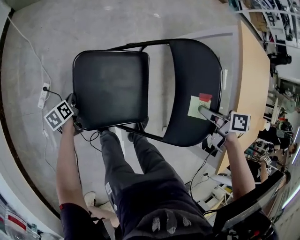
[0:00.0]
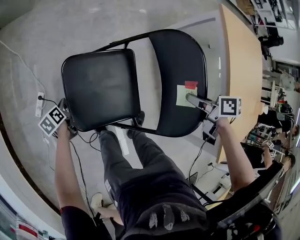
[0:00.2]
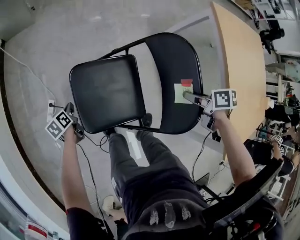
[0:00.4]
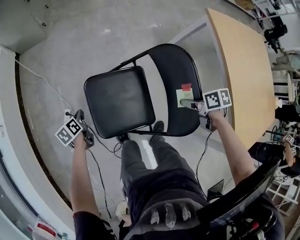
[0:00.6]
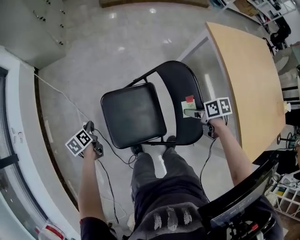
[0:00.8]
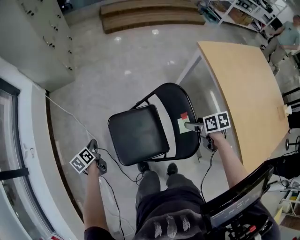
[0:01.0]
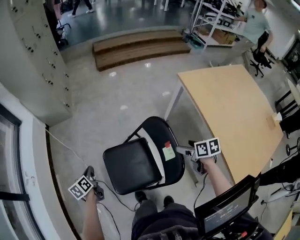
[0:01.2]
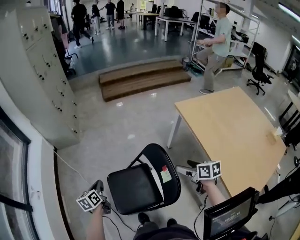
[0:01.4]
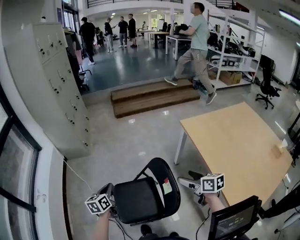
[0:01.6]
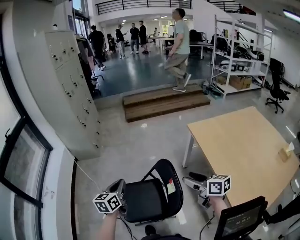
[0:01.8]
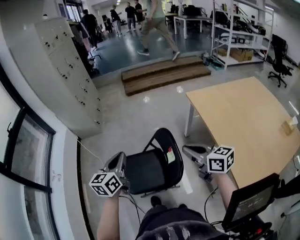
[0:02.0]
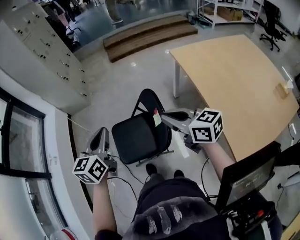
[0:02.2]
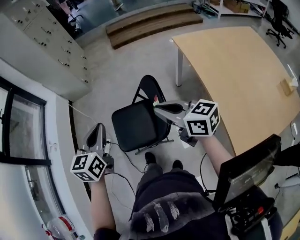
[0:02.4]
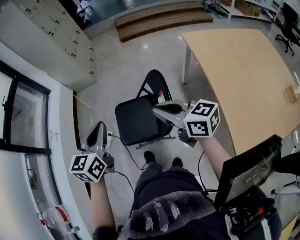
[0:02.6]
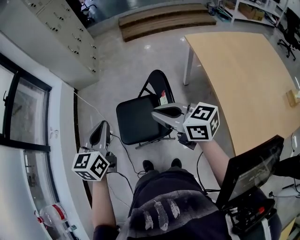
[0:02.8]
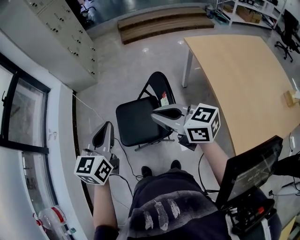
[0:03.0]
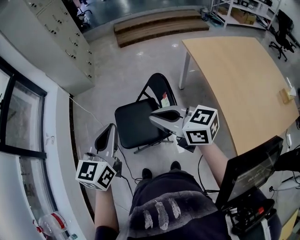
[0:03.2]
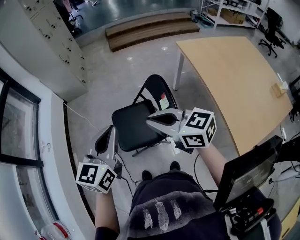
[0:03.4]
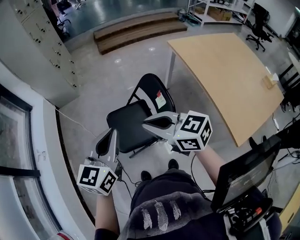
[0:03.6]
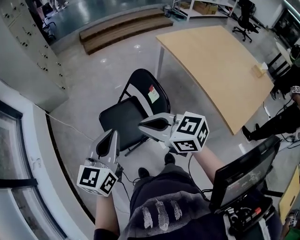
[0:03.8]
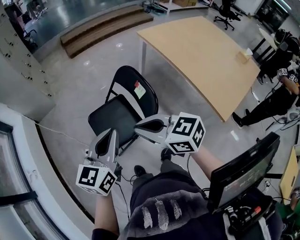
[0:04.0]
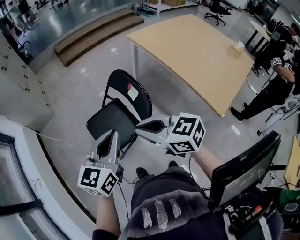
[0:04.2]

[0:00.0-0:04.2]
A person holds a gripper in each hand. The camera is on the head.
0:00.0 to 0:01.4: The left gripper moves upward, some 40 cm, and turns by some 30 degrees, while the right gripper is displaced upward and to the right by some 20 cm, rotates roughly 30 degrees, and opens its fingers.
0:01.4 to 0:02.8: The left gripper travels upward, backward and to the right by approximately 35 cm, and turns by some 30 degrees. The right gripper is displaced upward, to the left and backward by roughly 25 cm, changes its angle by about 50 degrees, and closes.
0:02.8 to 0:04.2: The left gripper ends up roughly 10 cm from where it was, and rotates approximately 40 degrees; the right gripper shifts by some 15 cm, and rotates some 20 degrees.

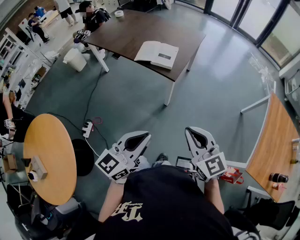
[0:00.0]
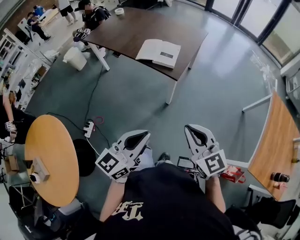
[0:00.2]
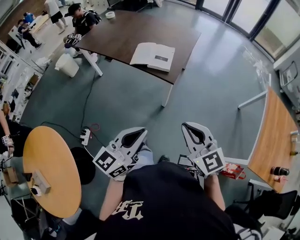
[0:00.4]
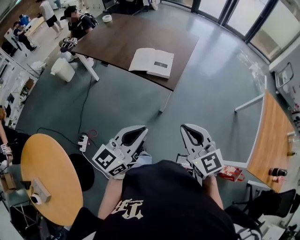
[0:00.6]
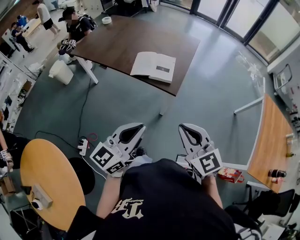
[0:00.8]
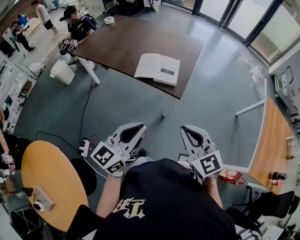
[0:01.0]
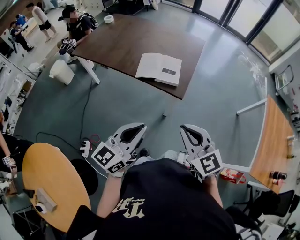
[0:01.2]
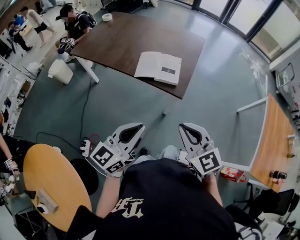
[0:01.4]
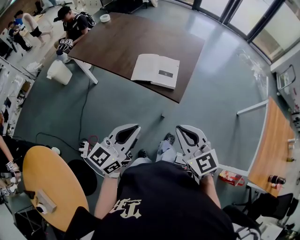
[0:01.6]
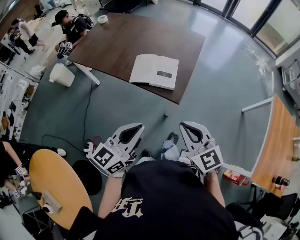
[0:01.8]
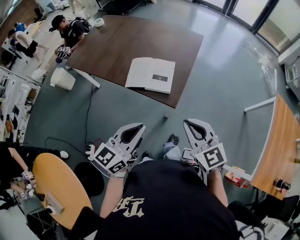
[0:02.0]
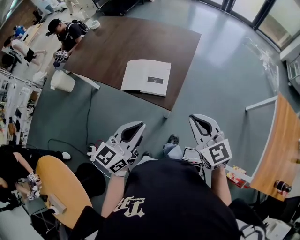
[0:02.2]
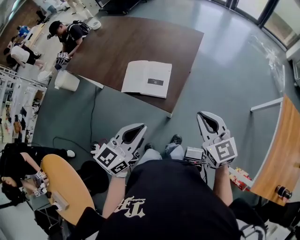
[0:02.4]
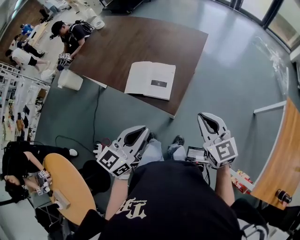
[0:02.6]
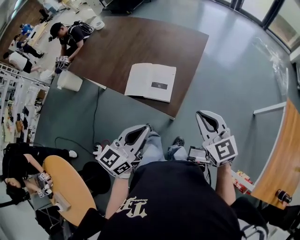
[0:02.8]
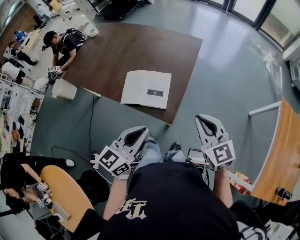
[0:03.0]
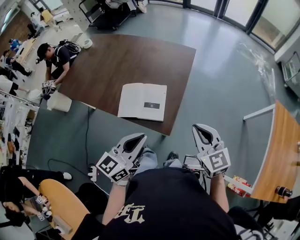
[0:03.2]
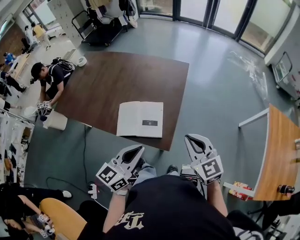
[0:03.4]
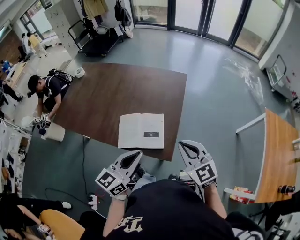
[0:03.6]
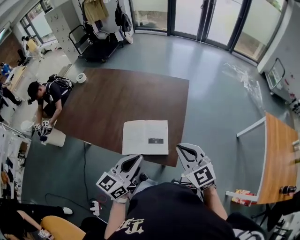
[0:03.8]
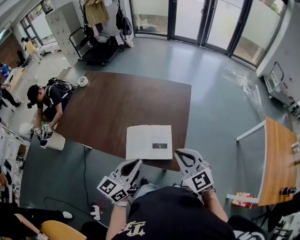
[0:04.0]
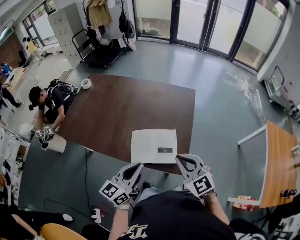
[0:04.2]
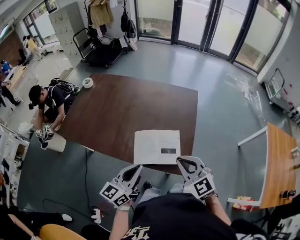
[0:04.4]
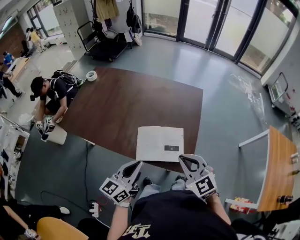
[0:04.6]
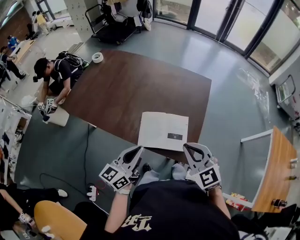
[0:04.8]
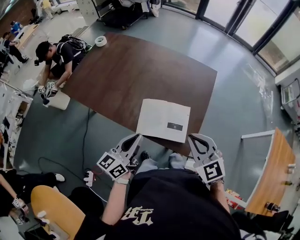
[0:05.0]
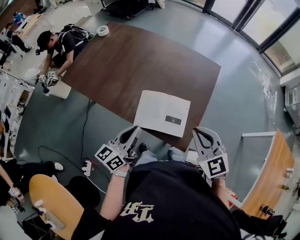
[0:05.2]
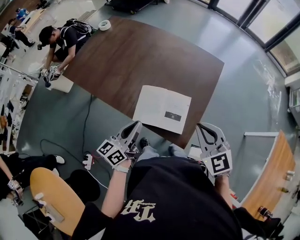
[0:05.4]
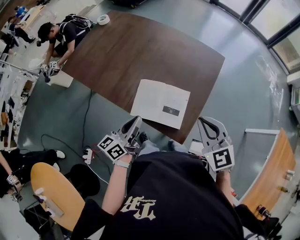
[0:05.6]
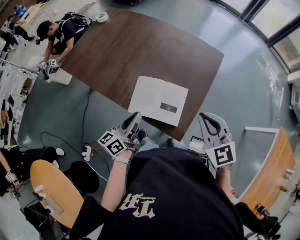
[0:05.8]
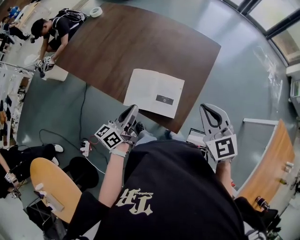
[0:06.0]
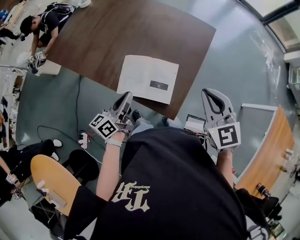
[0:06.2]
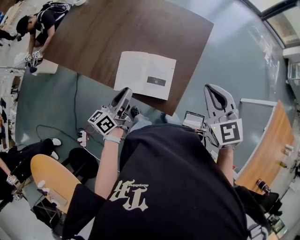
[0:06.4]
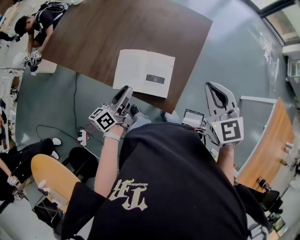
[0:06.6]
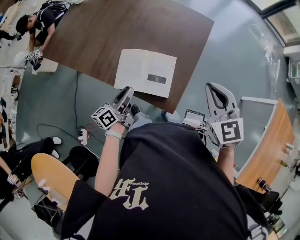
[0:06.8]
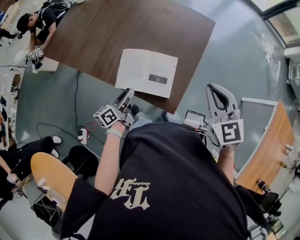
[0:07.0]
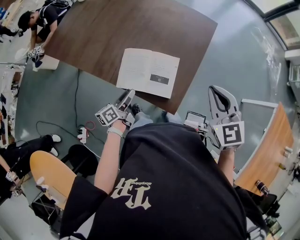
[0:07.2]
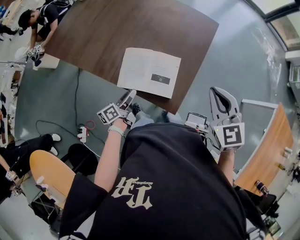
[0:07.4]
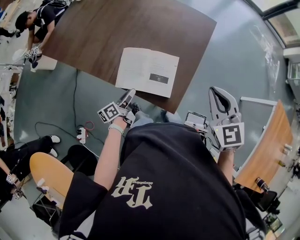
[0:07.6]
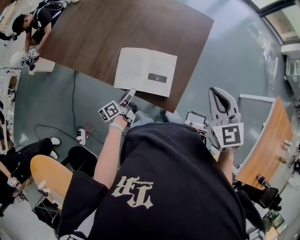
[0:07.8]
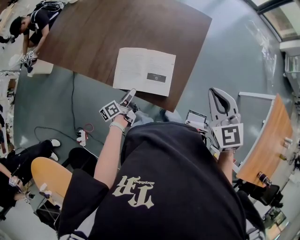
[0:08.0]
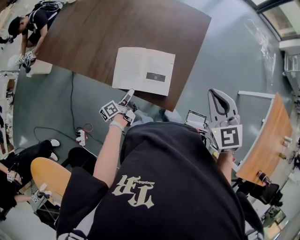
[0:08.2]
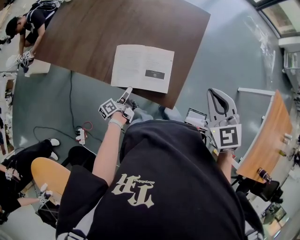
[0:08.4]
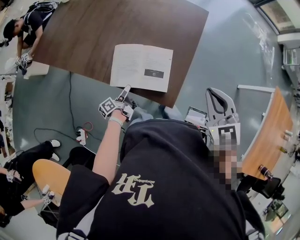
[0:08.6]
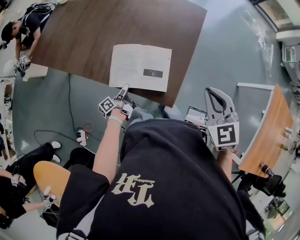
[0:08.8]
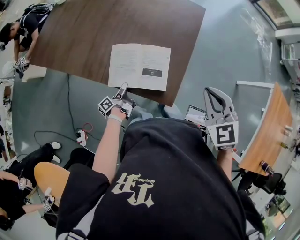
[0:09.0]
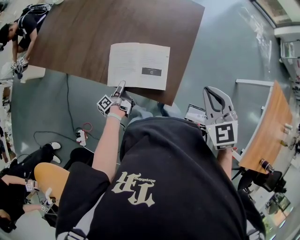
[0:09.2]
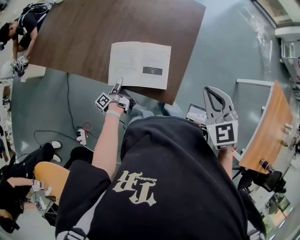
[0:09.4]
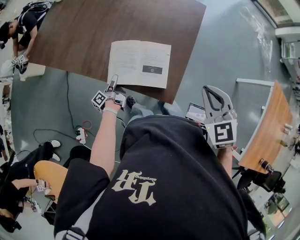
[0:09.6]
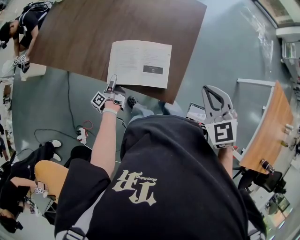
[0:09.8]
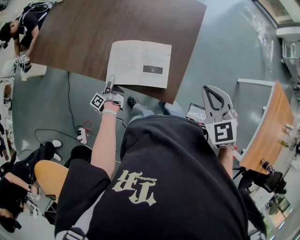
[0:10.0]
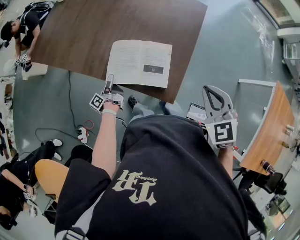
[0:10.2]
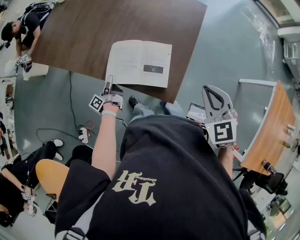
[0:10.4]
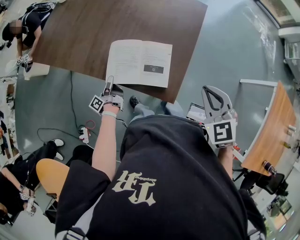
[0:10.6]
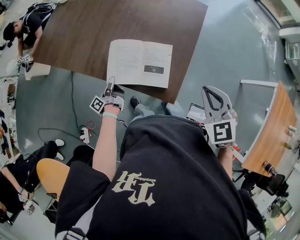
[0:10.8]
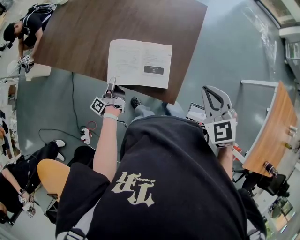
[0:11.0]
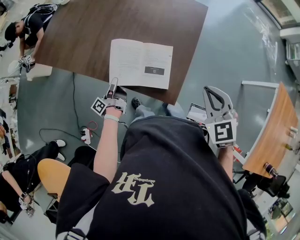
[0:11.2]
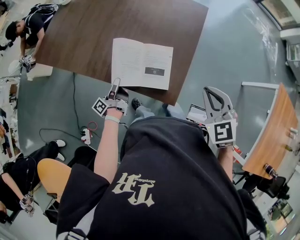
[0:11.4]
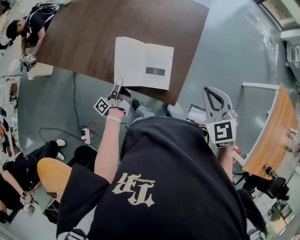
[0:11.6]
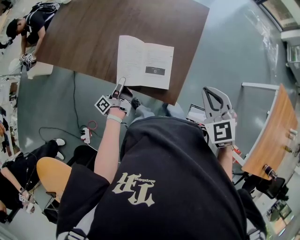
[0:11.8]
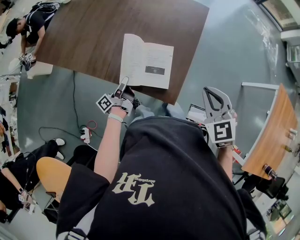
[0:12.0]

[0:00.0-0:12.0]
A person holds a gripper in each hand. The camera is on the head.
0:00.0 to 0:01.6: Both grippers move forward and to the left, approximately 30 cm.
0:01.6 to 0:03.0: The two grippers go about 30 cm forward and to the right.
0:03.0 to 0:04.4: The left gripper moves to the left and forward, approximately 25 cm; the right gripper heads to the left, covering about 25 cm.
0:04.4 to 0:06.0: The left gripper goes roughly 10 cm downward, and rotates about 30 degrees. Meanwhile the right gripper moves to the right and forward, roughly 15 cm.
0:06.0 to 0:07.6: The left gripper shifts approximately 20 cm downward, rotates about 30 degrees, and opens up.
0:07.6 to 0:09.0: The left gripper is displaced downward by approximately 10 cm, and rotates roughly 30 degrees.
0:09.0 to 0:10.4: The left gripper goes some 5 cm to the left.
0:10.4 to 0:12.0: The left gripper goes some 10 cm to the right and upward, and closes.

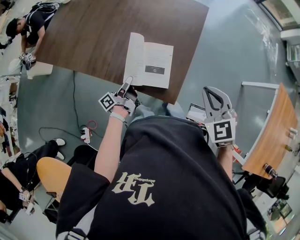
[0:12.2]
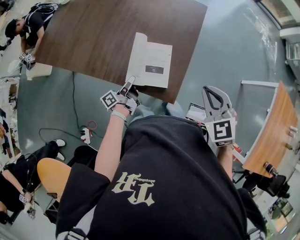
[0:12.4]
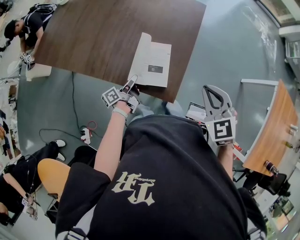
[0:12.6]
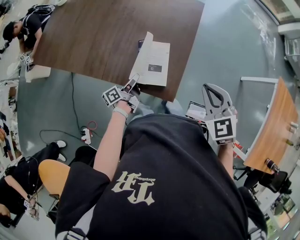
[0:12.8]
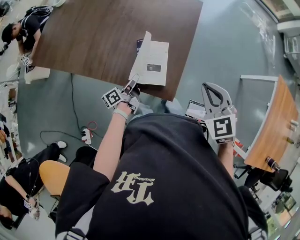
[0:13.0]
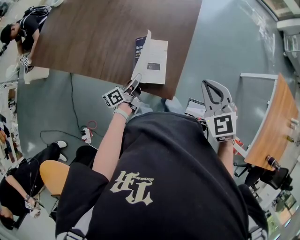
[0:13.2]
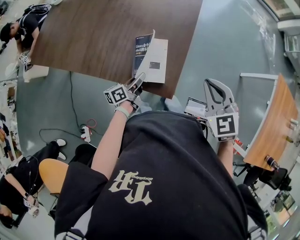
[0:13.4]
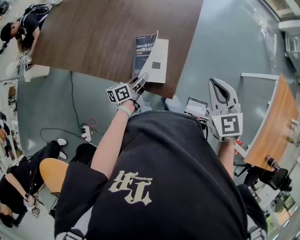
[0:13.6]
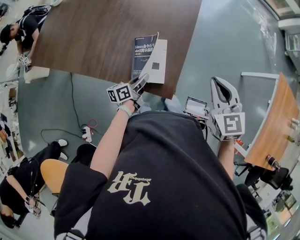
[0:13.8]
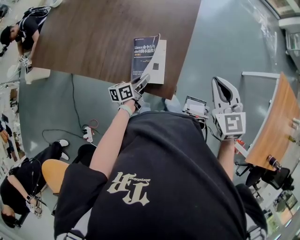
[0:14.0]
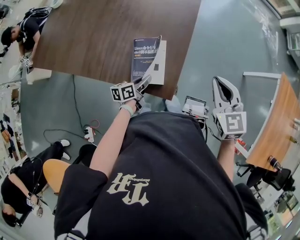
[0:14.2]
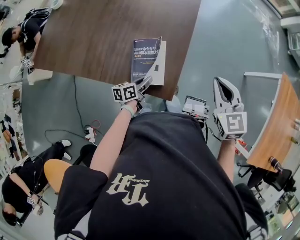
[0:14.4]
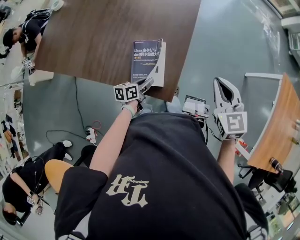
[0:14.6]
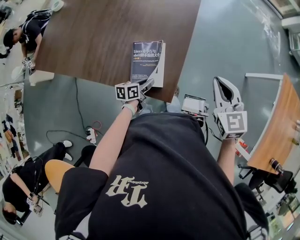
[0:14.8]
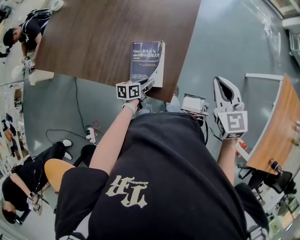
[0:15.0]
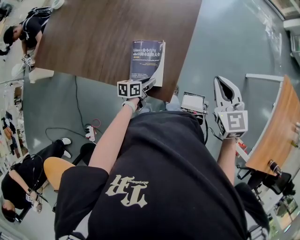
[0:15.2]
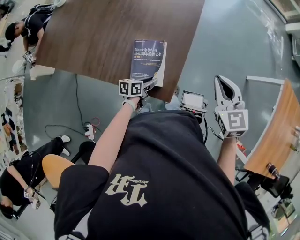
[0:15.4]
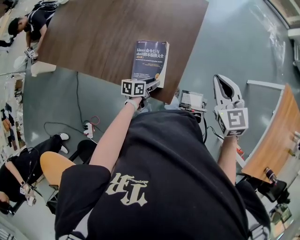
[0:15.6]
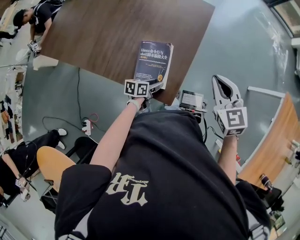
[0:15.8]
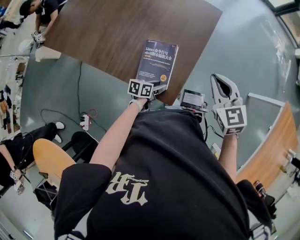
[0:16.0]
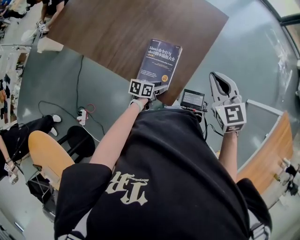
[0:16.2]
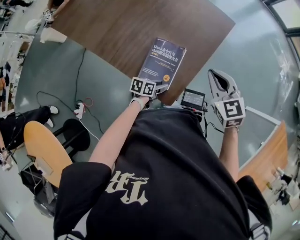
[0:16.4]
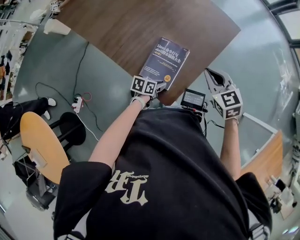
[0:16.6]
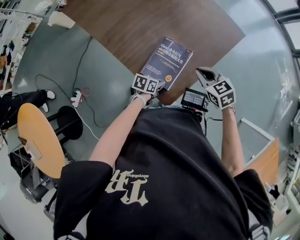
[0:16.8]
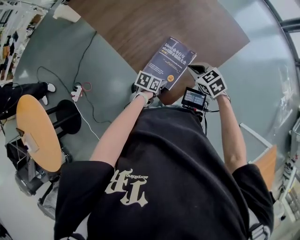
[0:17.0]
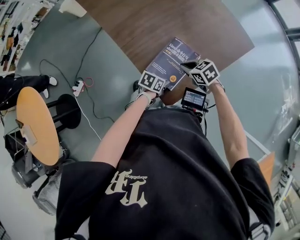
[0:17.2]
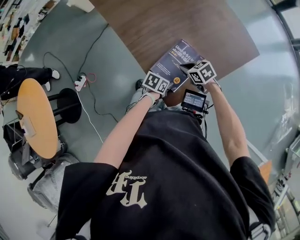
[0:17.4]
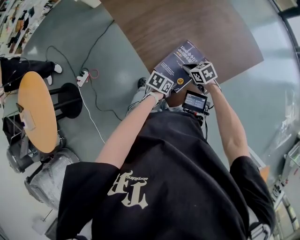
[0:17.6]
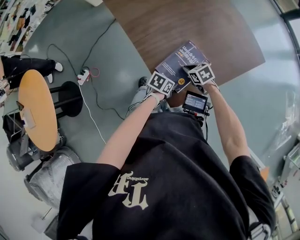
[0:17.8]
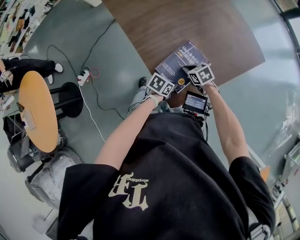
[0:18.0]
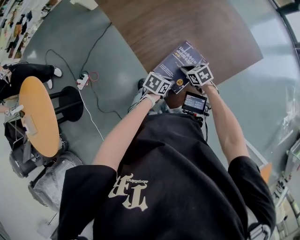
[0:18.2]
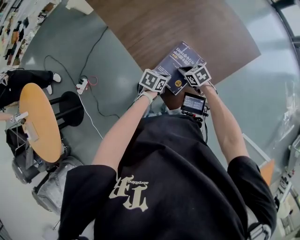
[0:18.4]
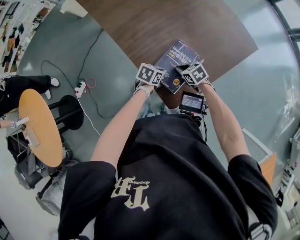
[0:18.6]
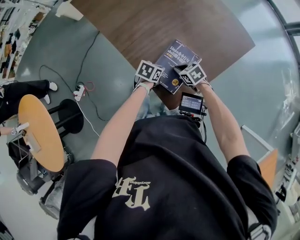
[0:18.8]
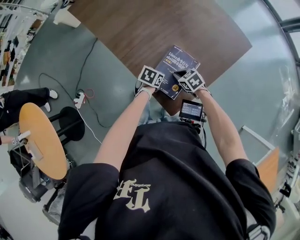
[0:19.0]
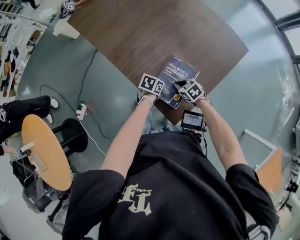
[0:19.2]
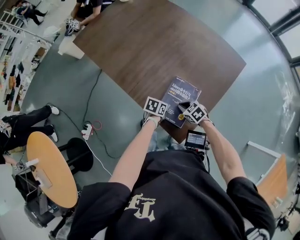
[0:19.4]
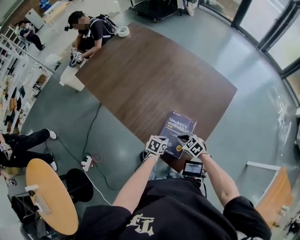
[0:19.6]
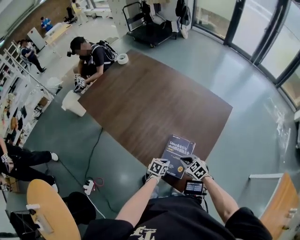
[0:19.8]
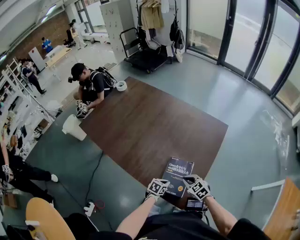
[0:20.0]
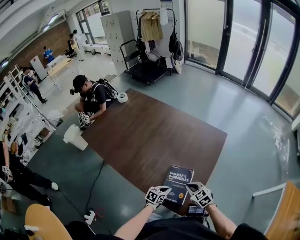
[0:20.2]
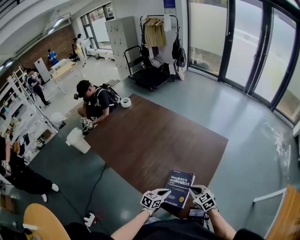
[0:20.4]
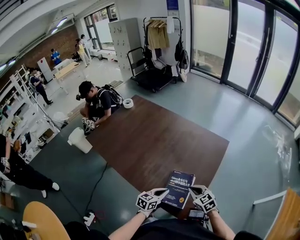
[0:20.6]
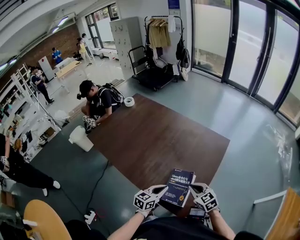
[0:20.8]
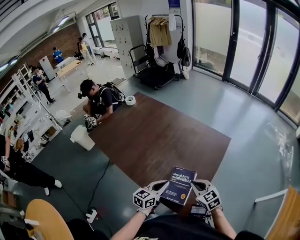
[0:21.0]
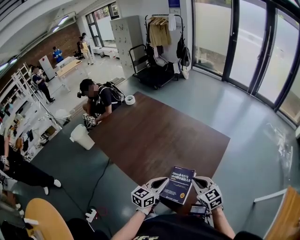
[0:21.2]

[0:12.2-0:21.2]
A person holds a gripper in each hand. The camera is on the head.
0:12.2 to 0:13.8: The left gripper shifts roughly 10 cm to the right, and changes its angle by approximately 40 degrees; the right gripper shifts by about 5 cm.
0:13.8 to 0:15.2: The right gripper shifts by some 5 cm; the left gripper travels downward by roughly 5 cm, and changes its angle by some 20 degrees.
0:15.2 to 0:16.6: The right gripper heads to the left, forward and downward, covering roughly 15 cm, and turns by some 30 degrees; the left gripper opens and closes again.
0:16.6 to 0:18.2: The right gripper moves downward, some 25 cm, and turns by roughly 40 degrees.
0:18.2 to 0:19.8: The left gripper shifts by about 10 cm. Meanwhile the right gripper goes approximately 5 cm upward, and rotates some 20 degrees.
0:19.8 to 0:21.2: Both grippers move upward, some 25 cm. The right gripper changes its angle by approximately 30 degrees; the left gripper tips its fingers upward by approximately 40 degrees.
